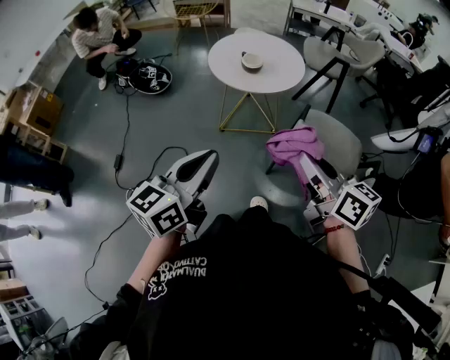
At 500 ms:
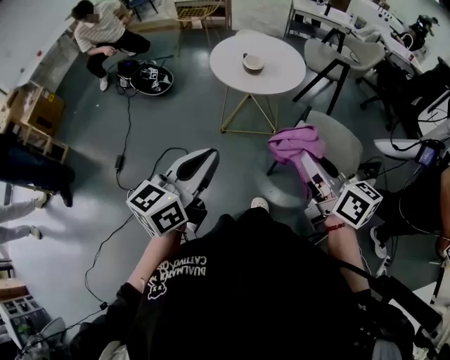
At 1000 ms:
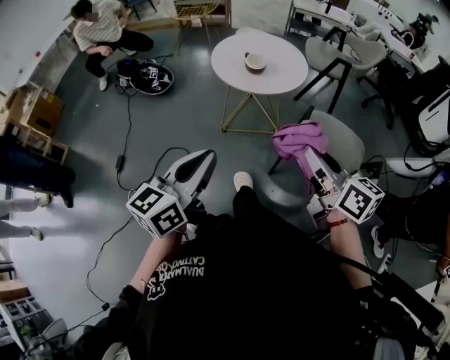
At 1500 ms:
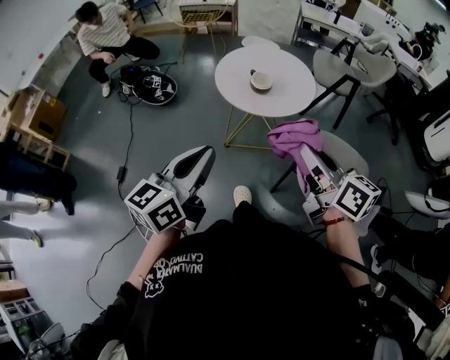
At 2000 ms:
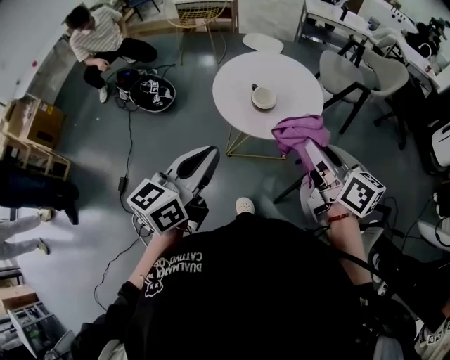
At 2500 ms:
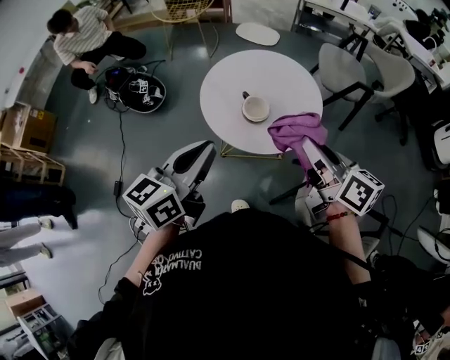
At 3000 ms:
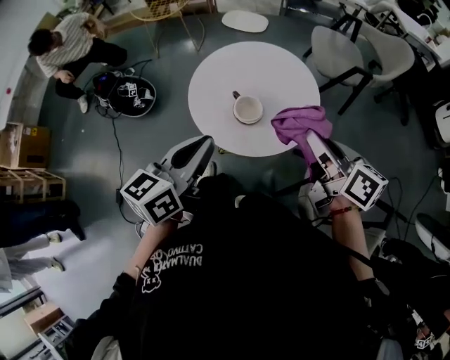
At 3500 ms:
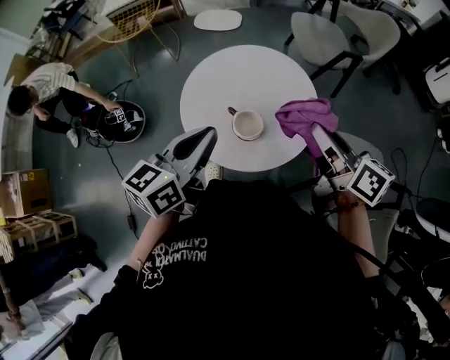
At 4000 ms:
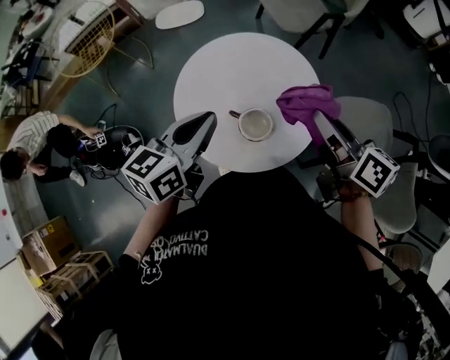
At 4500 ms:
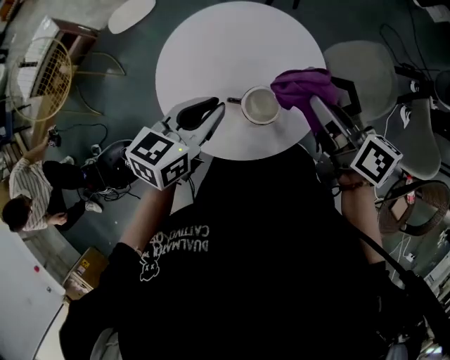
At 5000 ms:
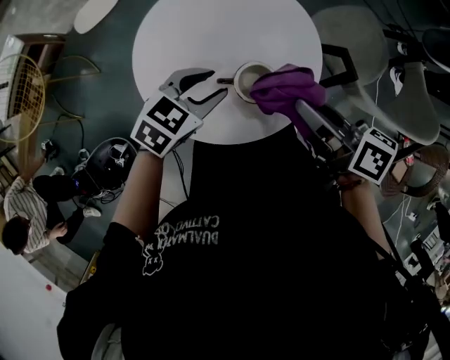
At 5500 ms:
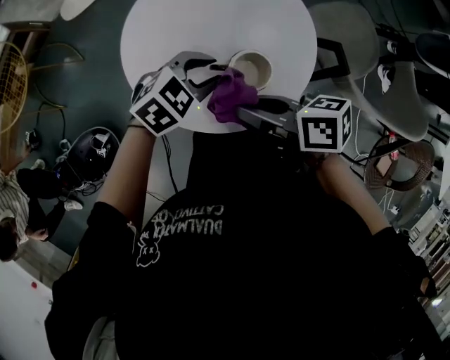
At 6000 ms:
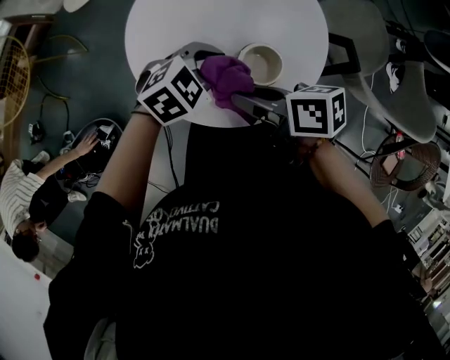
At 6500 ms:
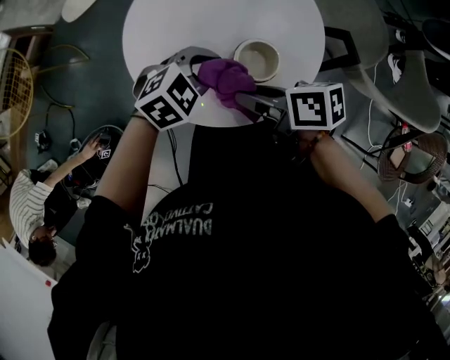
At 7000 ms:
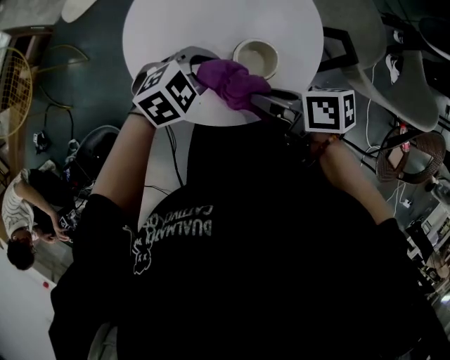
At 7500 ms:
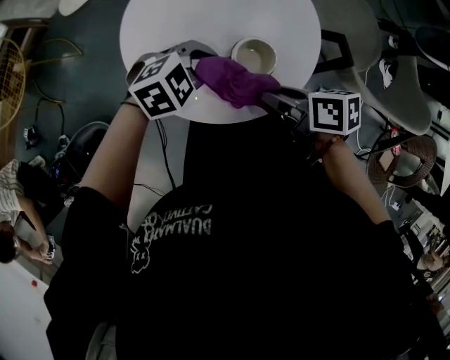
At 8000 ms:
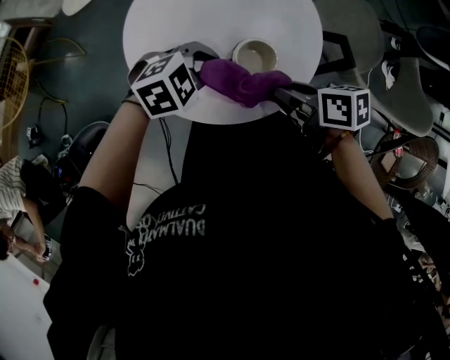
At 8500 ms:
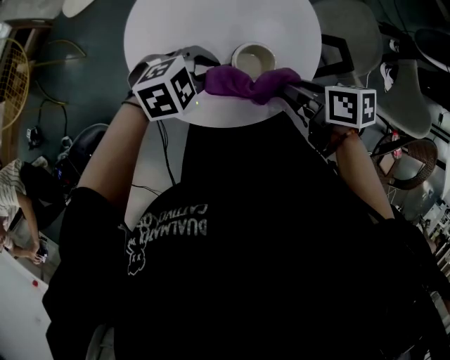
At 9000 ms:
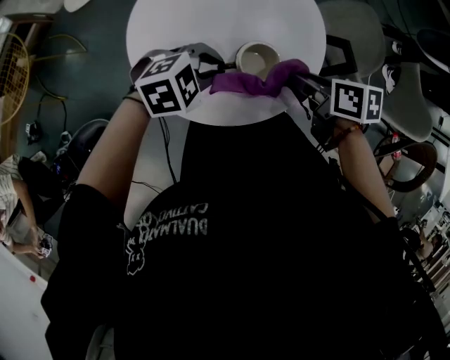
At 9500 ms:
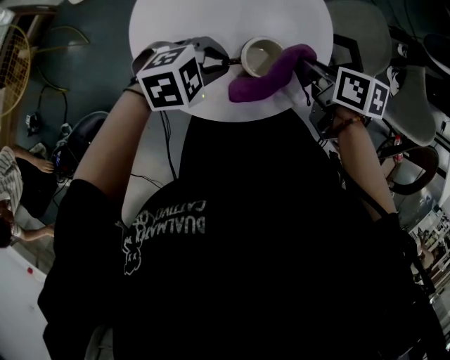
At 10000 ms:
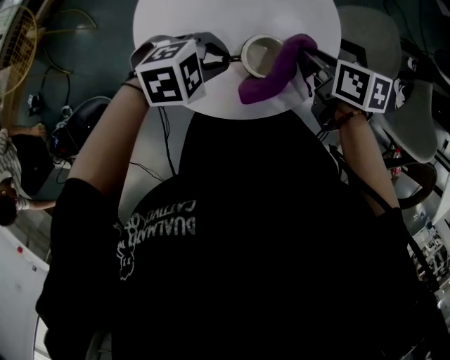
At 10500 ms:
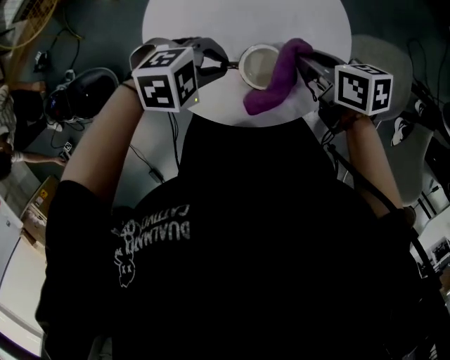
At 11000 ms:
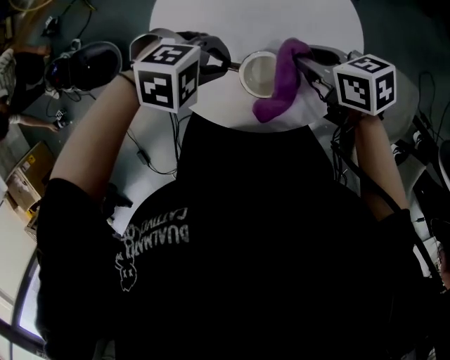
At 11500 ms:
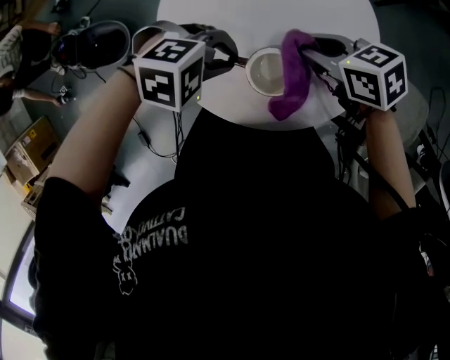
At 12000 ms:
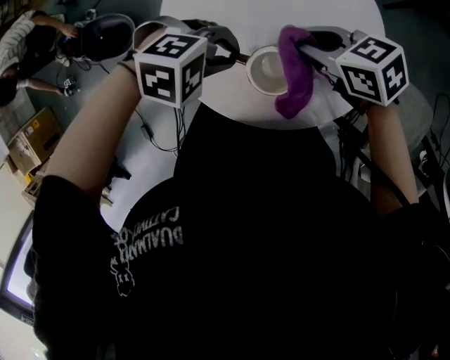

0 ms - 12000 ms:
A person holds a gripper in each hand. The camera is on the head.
0 ms - 2000 ms: Both grippers move forward, some 25 cm.
2000 ms - 4000 ms: The right gripper changes place by some 25 cm, and changes its angle by approximately 40 degrees. Meanwhile the left gripper moves roughly 40 cm, and turns by roughly 40 degrees.
4000 ms - 6000 ms: Both grippers travel together downward, roughly 20 cm. The left gripper rotates approximately 70 degrees, and opens, then closes once more. Meanwhile the right gripper swivels approximately 30 degrees.
6000 ms - 8000 ms: The right gripper ends up about 10 cm from where it was.
8000 ms - 10000 ms: The right gripper moves some 10 cm.
10000 ms - 12000 ms: The right gripper moves roughly 10 cm, and changes its angle by approximately 70 degrees.

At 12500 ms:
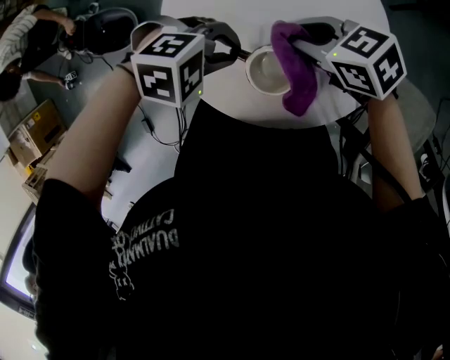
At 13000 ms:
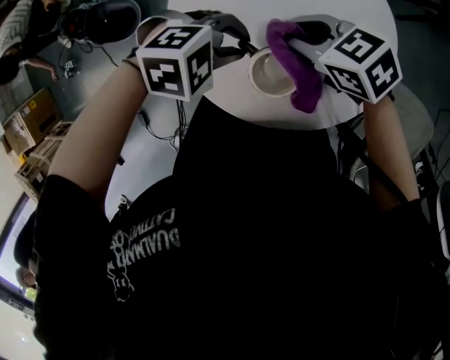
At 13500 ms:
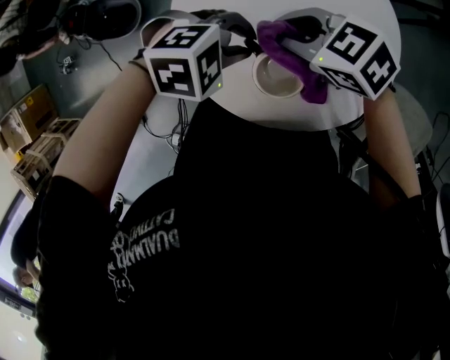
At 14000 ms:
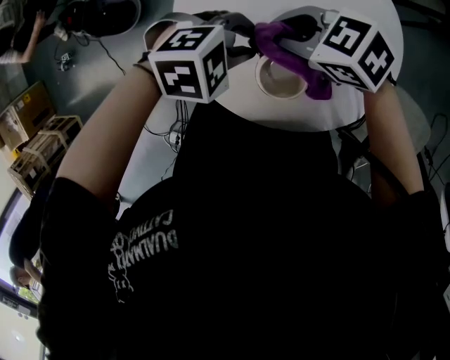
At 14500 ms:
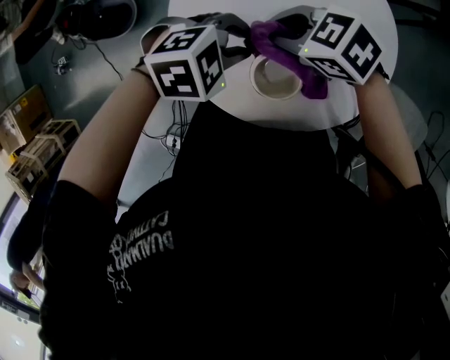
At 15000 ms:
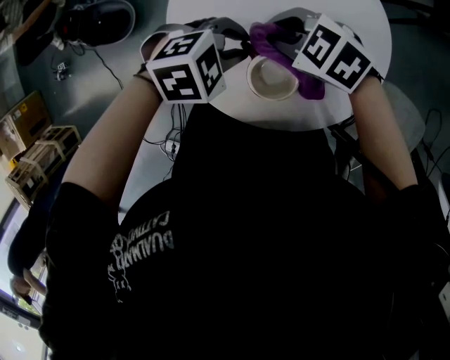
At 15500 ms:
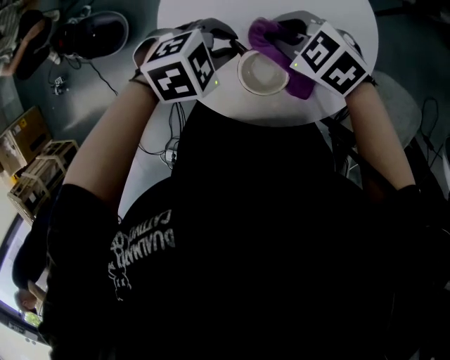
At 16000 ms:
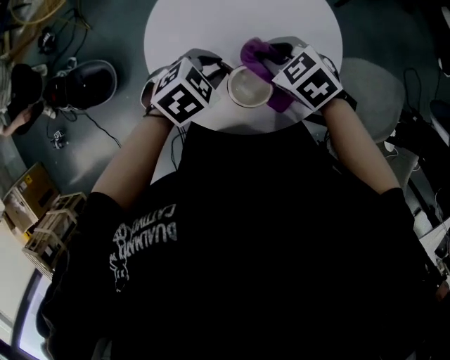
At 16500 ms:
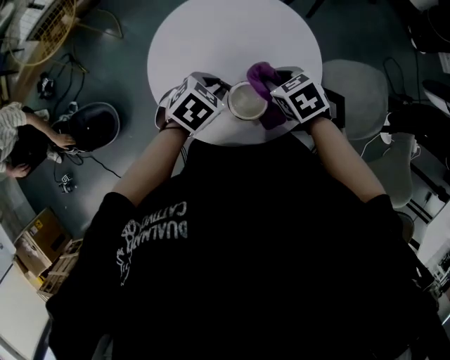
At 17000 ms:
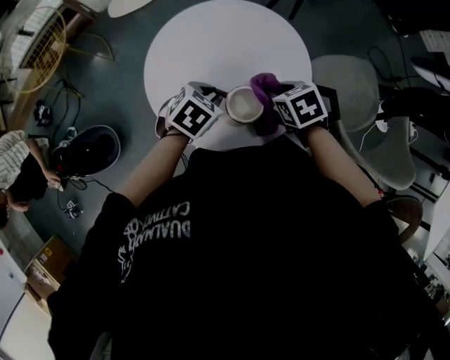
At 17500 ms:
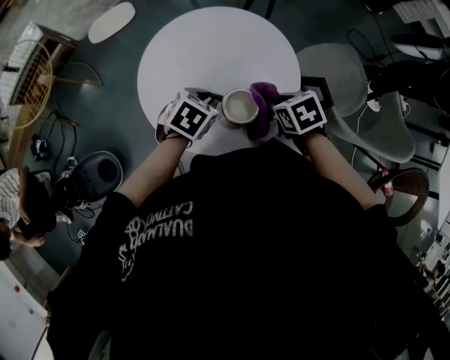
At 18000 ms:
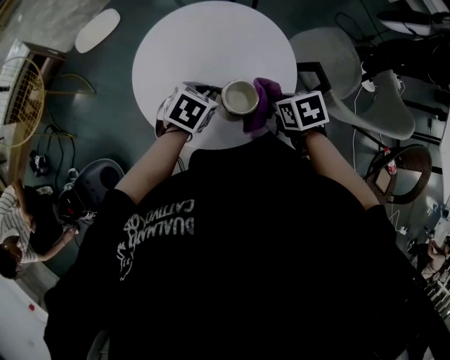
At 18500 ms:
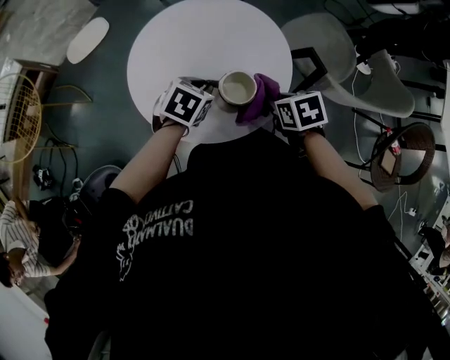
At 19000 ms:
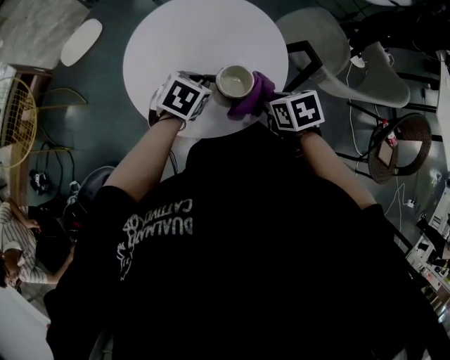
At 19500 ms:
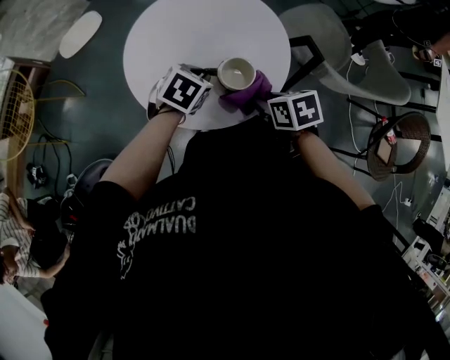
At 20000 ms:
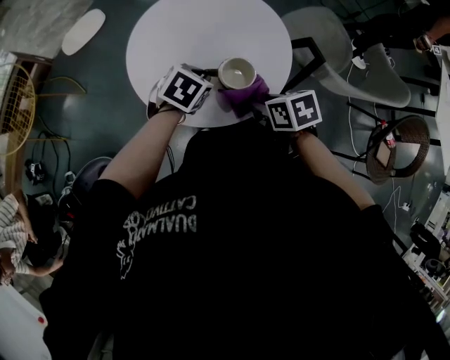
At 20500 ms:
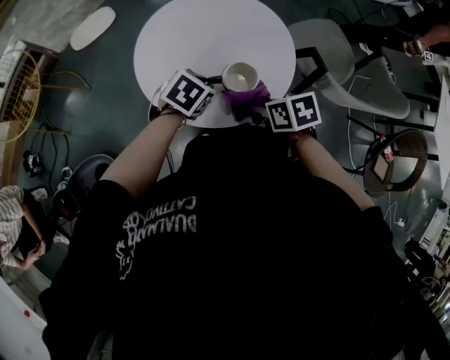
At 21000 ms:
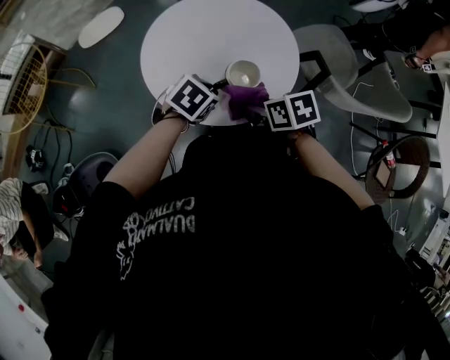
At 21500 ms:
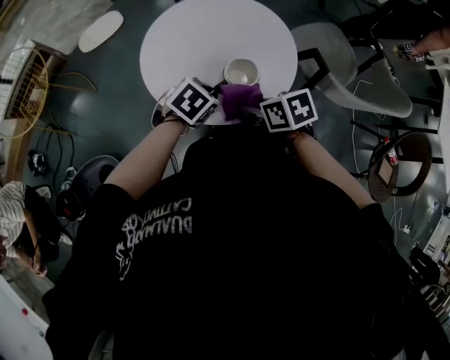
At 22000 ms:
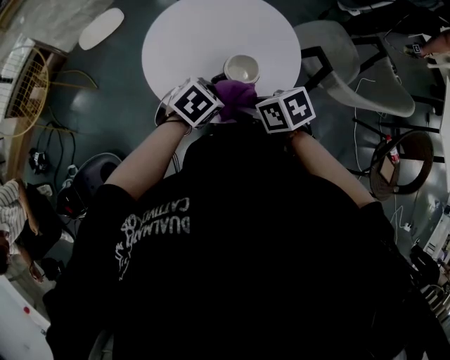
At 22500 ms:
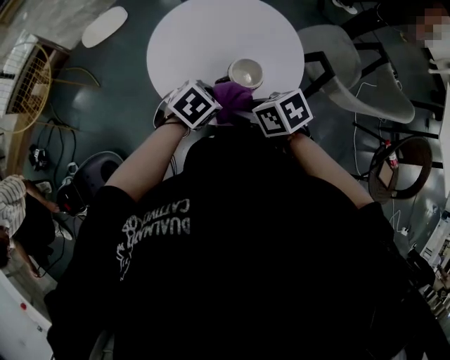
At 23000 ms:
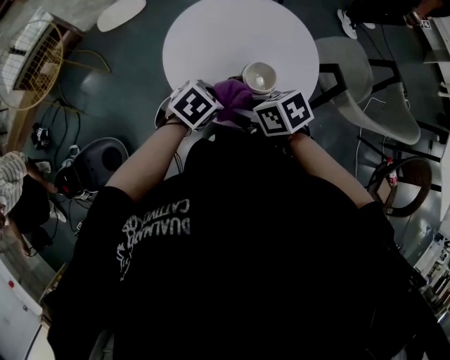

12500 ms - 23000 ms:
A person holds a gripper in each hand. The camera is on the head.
12500 ms - 14500 ms: The right gripper shifts by approximately 5 cm, while the left gripper changes its angle by roughly 20 degrees.
14500 ms - 16500 ms: The left gripper changes place by roughly 5 cm. Meanwhile the right gripper ends up some 15 cm from where it was, and turns by roughly 60 degrees.
16500 ms - 19000 ms: The right gripper moves backward, some 15 cm, and rotates around the line of its fingers by about 40 degrees, clockwise from behind.
19000 ms - 21000 ms: The left gripper travels backward by approximately 10 cm. The right gripper shifts some 10 cm to the left and backward.
21000 ms - 23000 ms: The right gripper shifts by some 10 cm.

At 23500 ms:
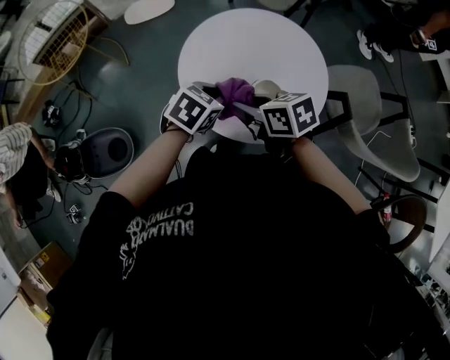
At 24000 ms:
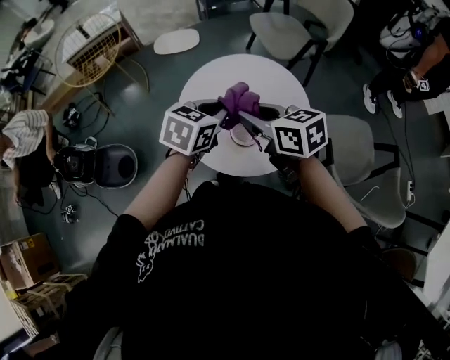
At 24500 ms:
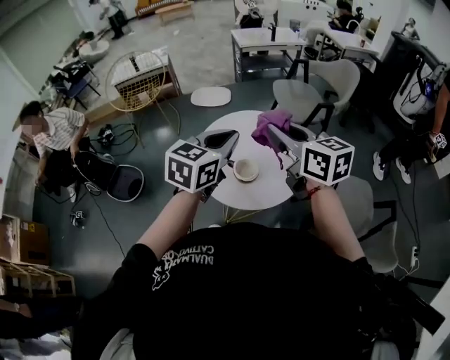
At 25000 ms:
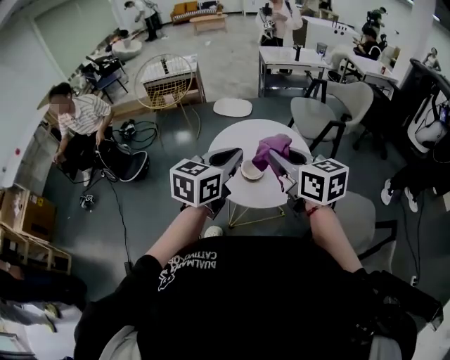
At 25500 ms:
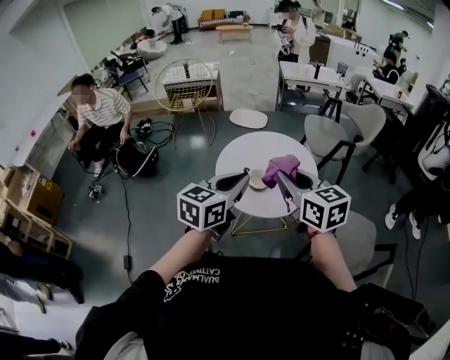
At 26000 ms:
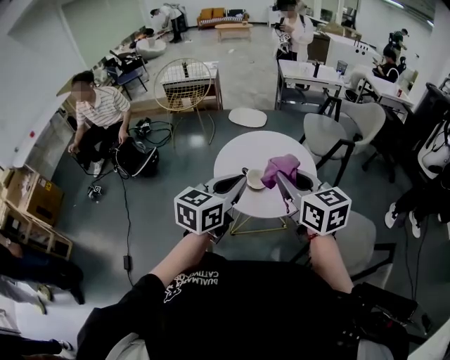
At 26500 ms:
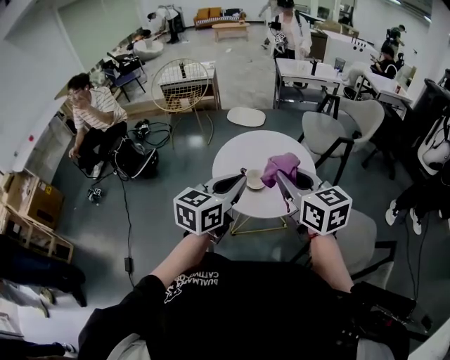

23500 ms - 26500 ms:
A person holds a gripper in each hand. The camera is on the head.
23500 ms - 25000 ms: The right gripper heads upward, to the right and backward, covering about 35 cm, and rotates some 40 degrees. The left gripper heads upward, backward and to the right, covering roughly 35 cm, and tips its fingers upward by some 40 degrees.
25000 ms - 26500 ms: There are only small adjustments of the grippers.

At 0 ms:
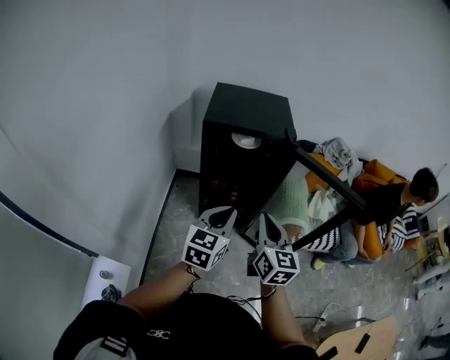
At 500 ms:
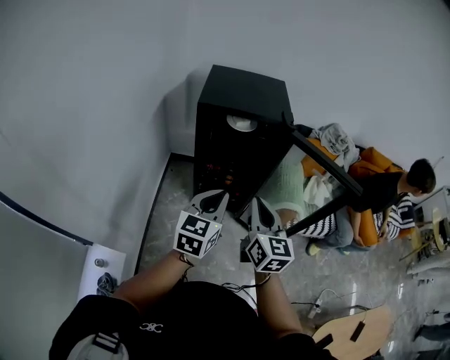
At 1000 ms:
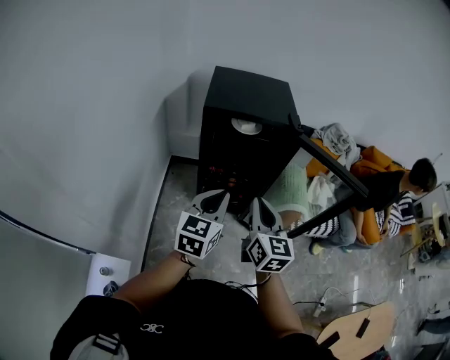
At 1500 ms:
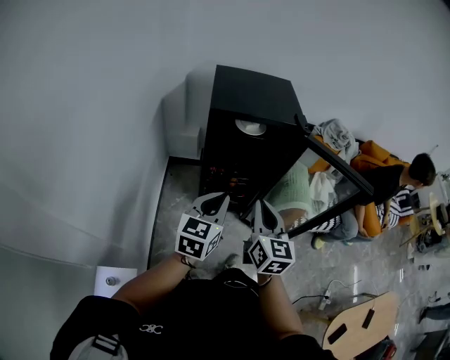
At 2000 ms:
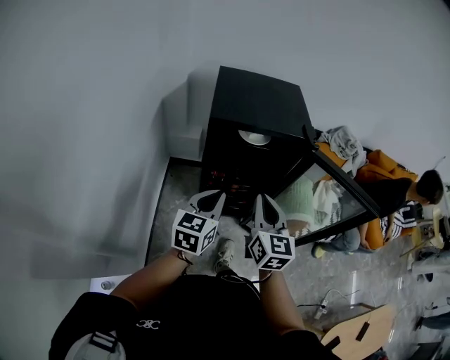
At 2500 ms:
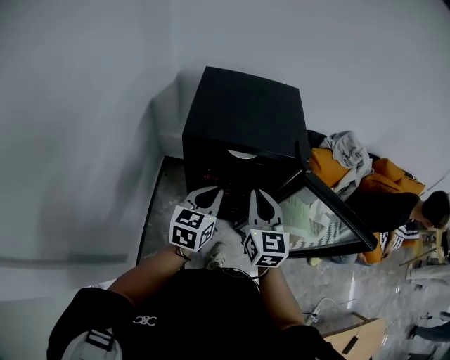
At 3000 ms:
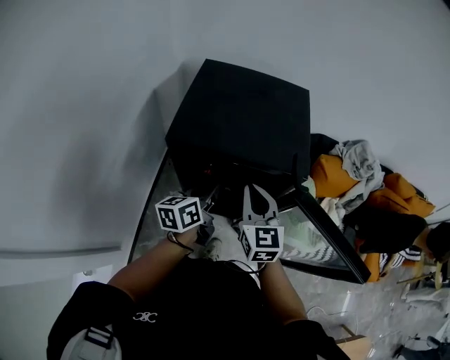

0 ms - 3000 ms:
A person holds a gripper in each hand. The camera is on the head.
0 ms - 1500 ms: Both grippers travel together to the left, approximately 10 cm.
1500 ms - 3000 ms: The two grippers go approximately 25 cm forward. The right gripper swivels some 20 degrees. Meanwhile the left gripper rotates about 40 degrees.
